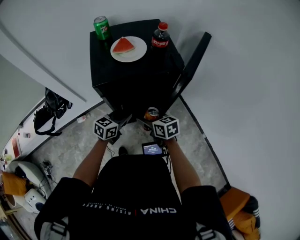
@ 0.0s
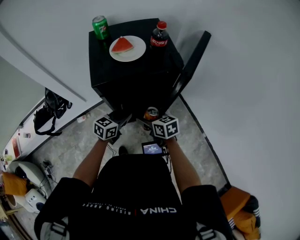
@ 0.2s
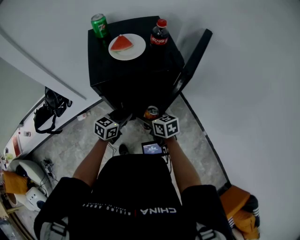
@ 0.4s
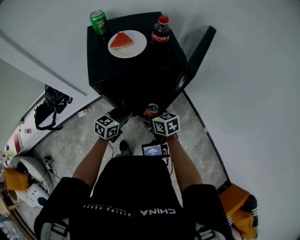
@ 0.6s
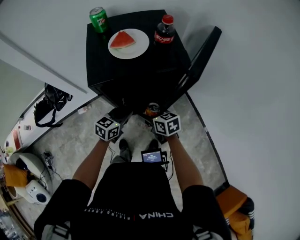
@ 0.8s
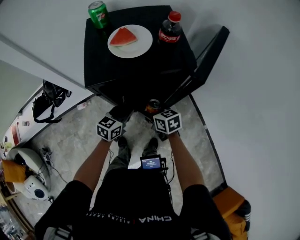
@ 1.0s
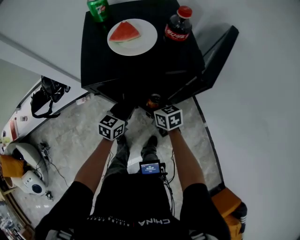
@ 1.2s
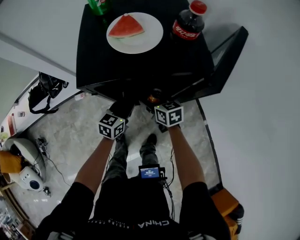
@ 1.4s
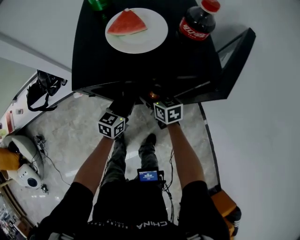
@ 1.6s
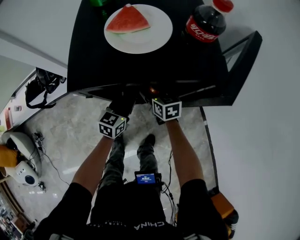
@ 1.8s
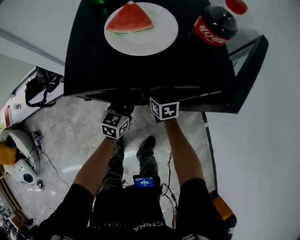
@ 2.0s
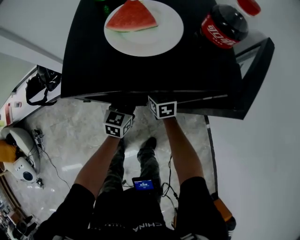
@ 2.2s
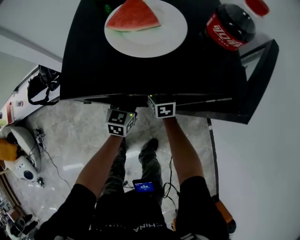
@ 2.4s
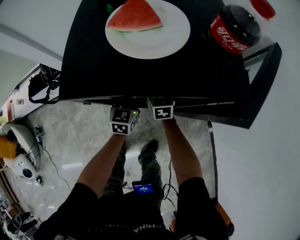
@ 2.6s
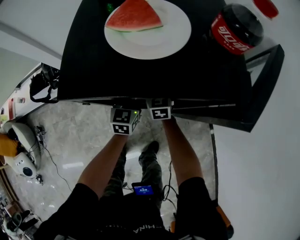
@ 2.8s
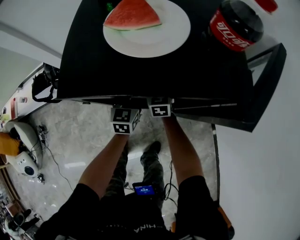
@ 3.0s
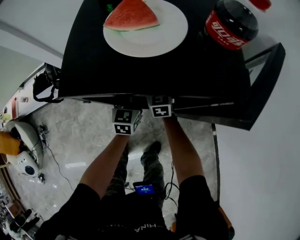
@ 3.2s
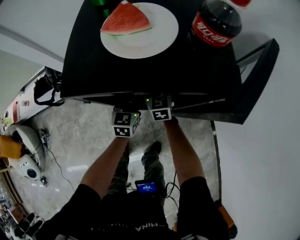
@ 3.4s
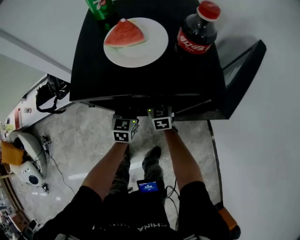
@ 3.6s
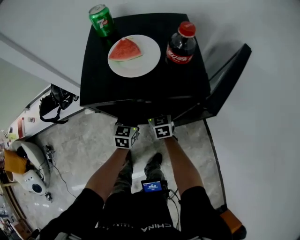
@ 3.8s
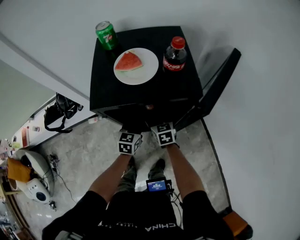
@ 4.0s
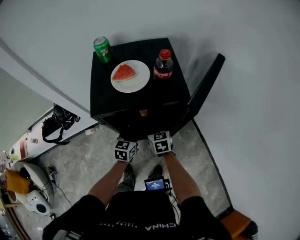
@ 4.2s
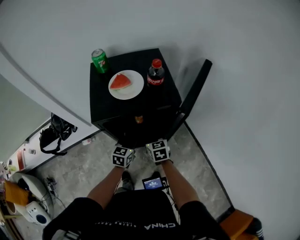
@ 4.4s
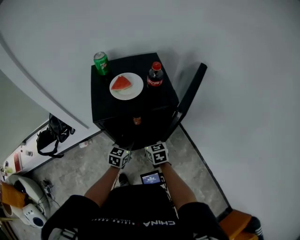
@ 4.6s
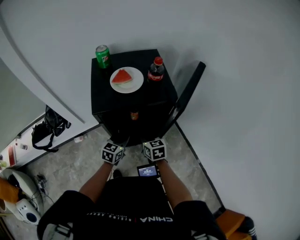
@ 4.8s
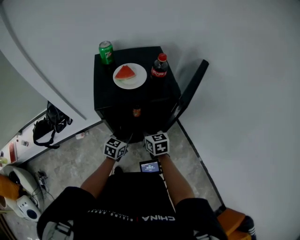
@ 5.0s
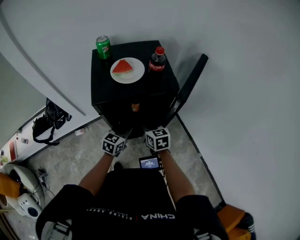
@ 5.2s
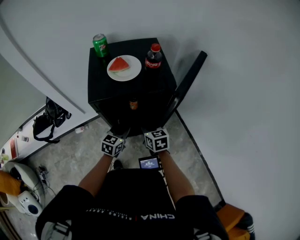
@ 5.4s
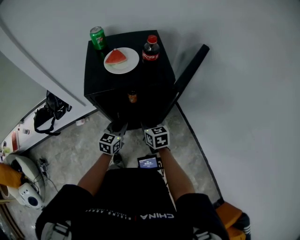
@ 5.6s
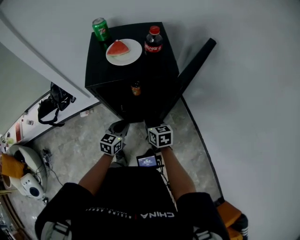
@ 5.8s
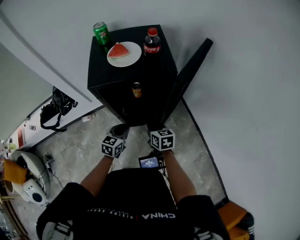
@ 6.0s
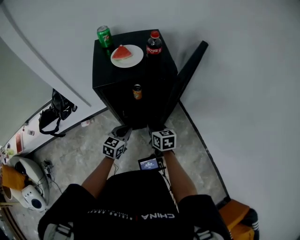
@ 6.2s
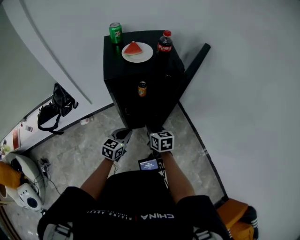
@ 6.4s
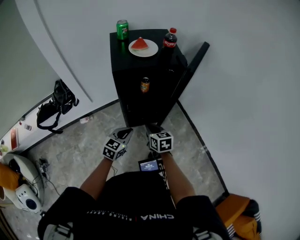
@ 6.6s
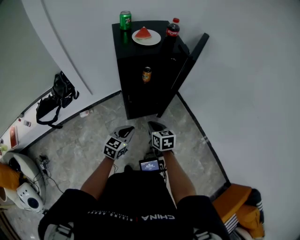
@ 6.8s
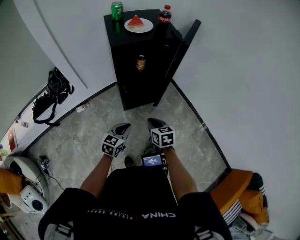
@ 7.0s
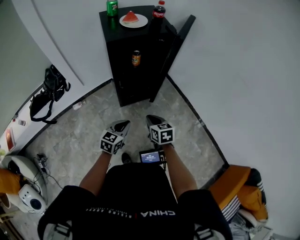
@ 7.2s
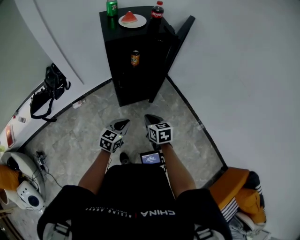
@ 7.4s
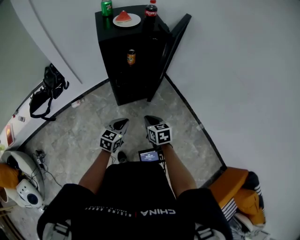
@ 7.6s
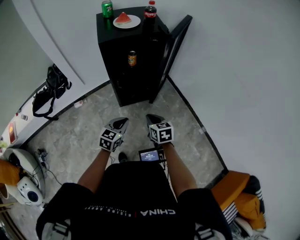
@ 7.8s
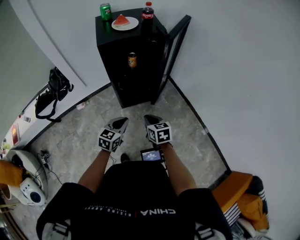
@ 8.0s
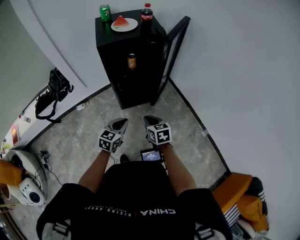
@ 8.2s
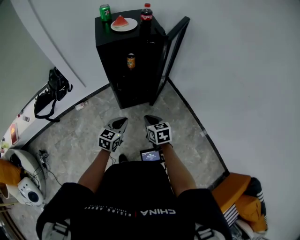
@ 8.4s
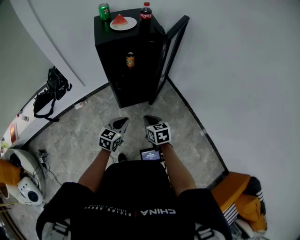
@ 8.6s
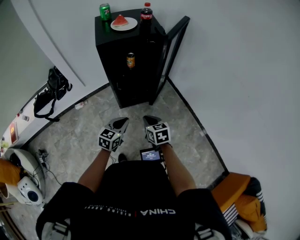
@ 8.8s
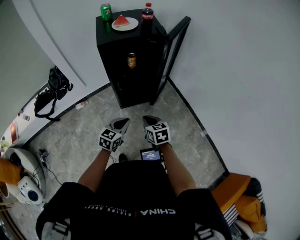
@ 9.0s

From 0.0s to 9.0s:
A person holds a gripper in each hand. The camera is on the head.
From 0.0s to 1.6s: The right gripper goes roughly 15 cm forward and downward, while the left gripper goes roughly 10 cm downward and forward.
From 1.6s to 3.0s: The two grippers go about 10 cm forward. The right gripper rotates roughly 30 degrees, while the left gripper swivels some 30 degrees.
From 3.0s to 4.4s: Both grippers move backward and upward, approximately 20 cm. The right gripper closes; the left gripper turns by roughly 20 degrees.
From 4.4s to 6.0s: The two grippers go roughly 10 cm backward.
From 6.0s to 7.6s: Both grippers travel together backward, roughly 25 cm.
From 7.6s to 9.0s: The grippers move only a little.

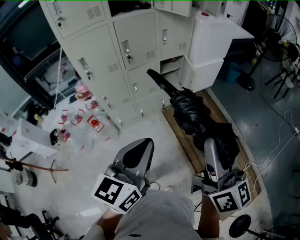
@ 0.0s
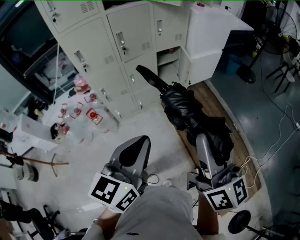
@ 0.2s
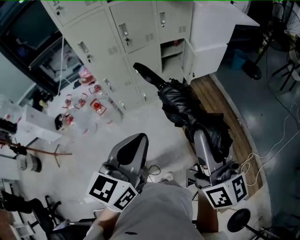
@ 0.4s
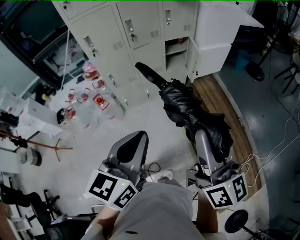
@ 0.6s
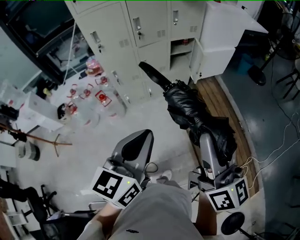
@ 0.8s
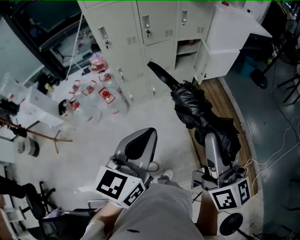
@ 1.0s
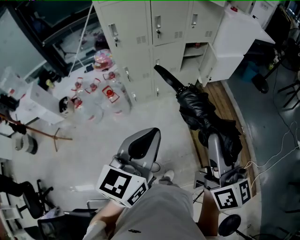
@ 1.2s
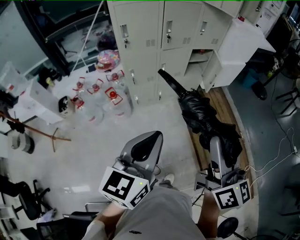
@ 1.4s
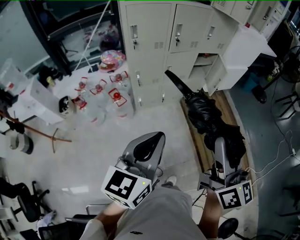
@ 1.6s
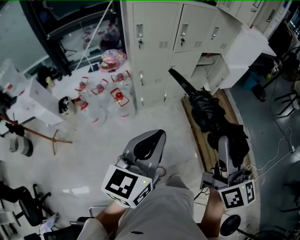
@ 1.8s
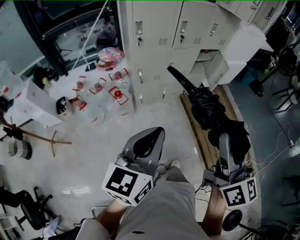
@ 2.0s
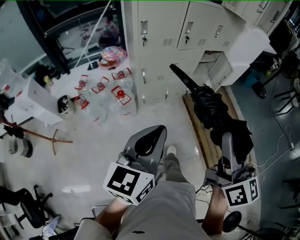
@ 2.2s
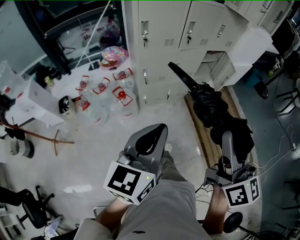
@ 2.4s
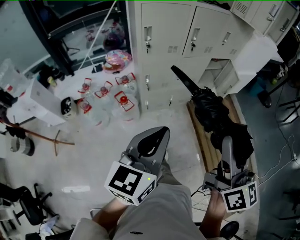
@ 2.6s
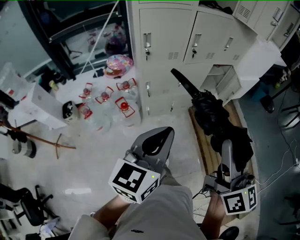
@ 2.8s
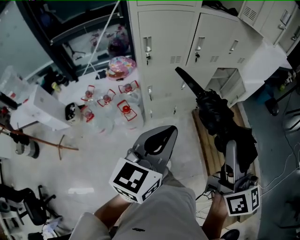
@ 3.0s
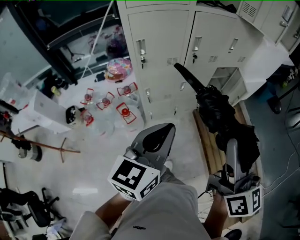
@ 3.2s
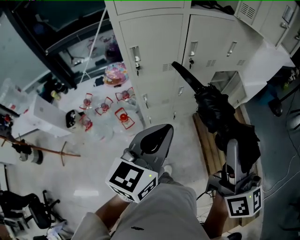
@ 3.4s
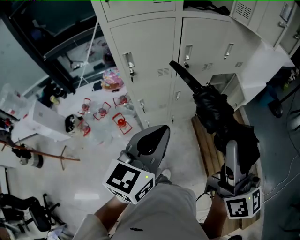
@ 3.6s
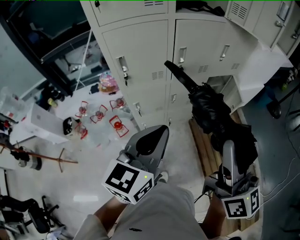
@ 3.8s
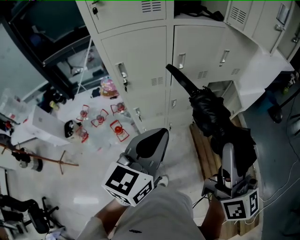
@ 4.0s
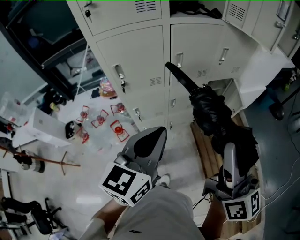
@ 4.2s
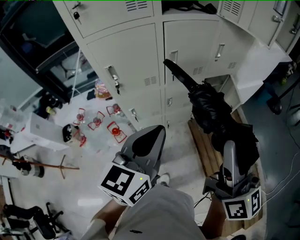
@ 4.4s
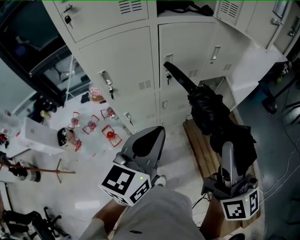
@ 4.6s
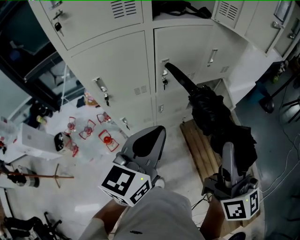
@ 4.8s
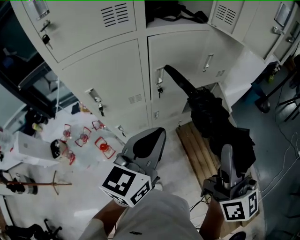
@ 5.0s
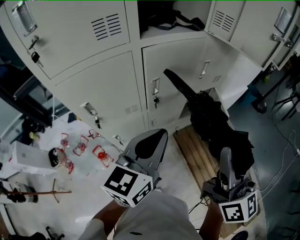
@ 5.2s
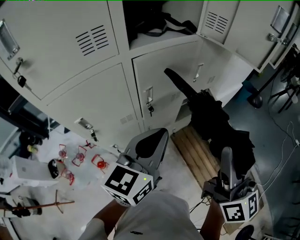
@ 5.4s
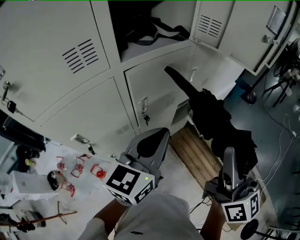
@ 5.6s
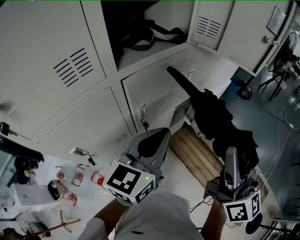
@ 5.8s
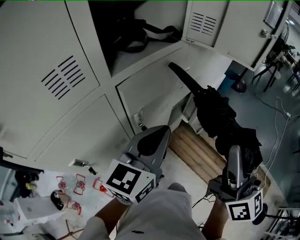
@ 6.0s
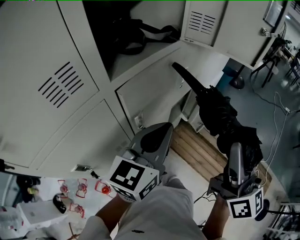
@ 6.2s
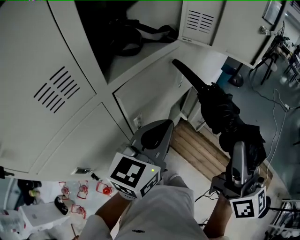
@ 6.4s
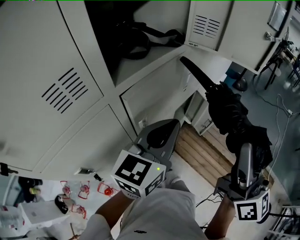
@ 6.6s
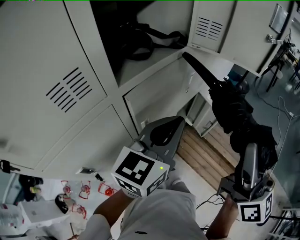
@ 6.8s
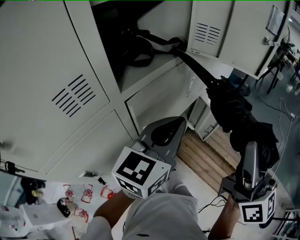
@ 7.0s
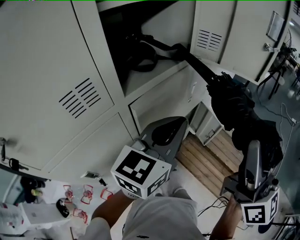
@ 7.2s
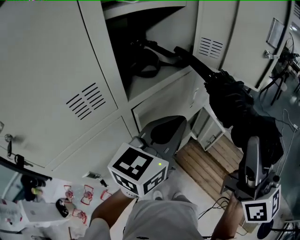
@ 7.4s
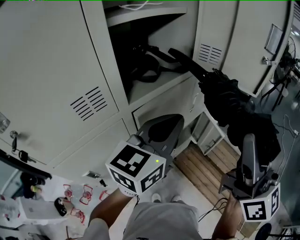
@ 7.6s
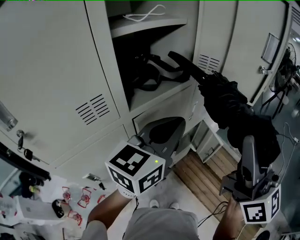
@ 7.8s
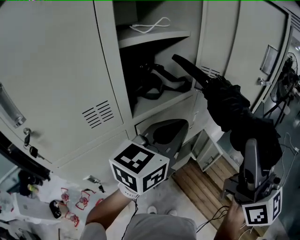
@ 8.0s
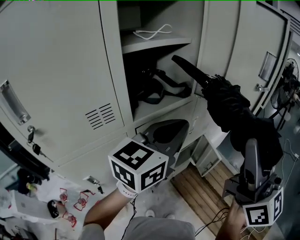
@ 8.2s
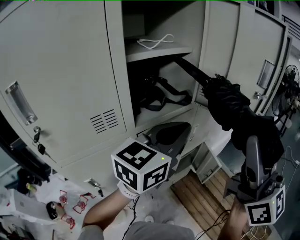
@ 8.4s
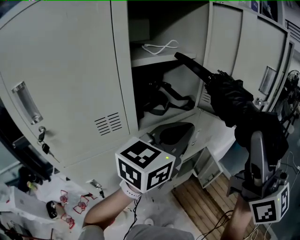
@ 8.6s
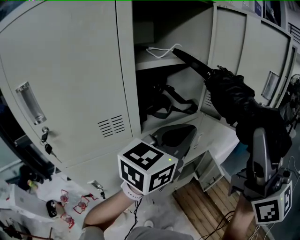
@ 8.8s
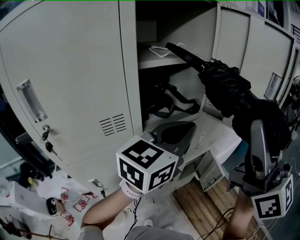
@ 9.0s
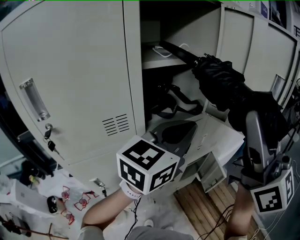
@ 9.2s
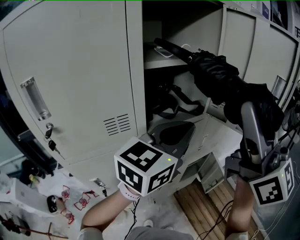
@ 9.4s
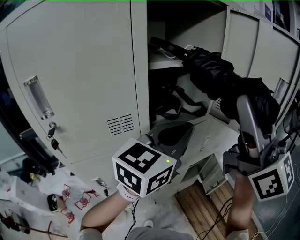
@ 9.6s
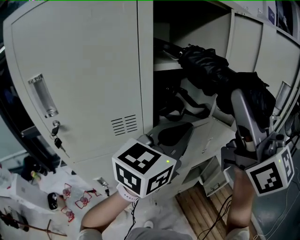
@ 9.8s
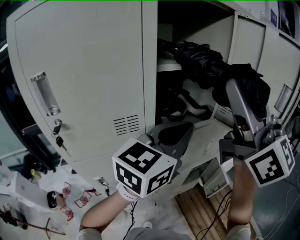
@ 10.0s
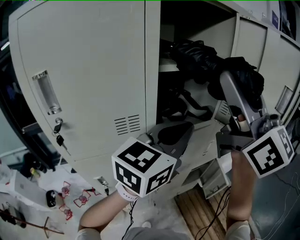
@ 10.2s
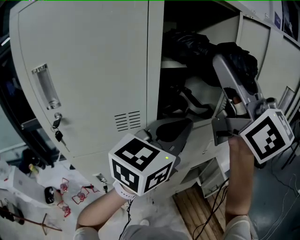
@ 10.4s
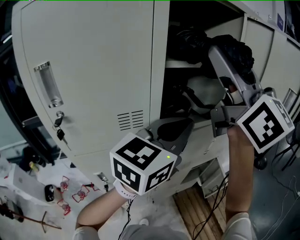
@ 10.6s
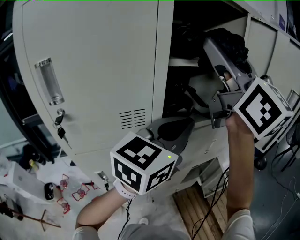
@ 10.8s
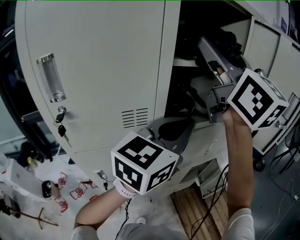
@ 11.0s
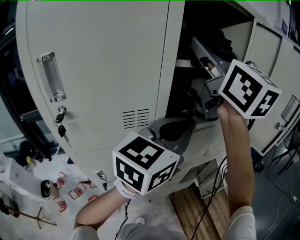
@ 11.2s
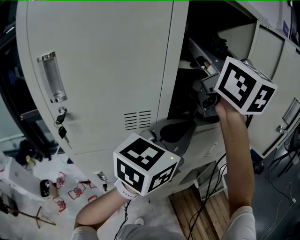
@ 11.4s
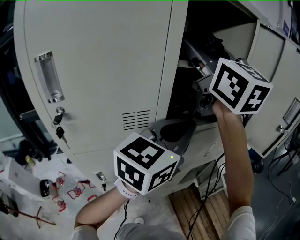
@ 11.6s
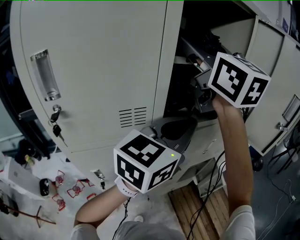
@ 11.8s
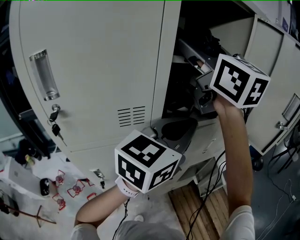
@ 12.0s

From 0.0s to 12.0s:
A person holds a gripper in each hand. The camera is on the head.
From 0.0s to 1.6s: Both grippers move to the left and backward, approximately 20 cm.
From 1.6s to 3.0s: The left gripper shifts approximately 20 cm forward; the right gripper moves forward and to the left, roughly 15 cm.
From 3.0s to 4.4s: The left gripper goes some 15 cm forward, while the right gripper goes approximately 15 cm forward and to the right.
From 4.4s to 6.0s: The right gripper ends up roughly 15 cm from where it was, and changes its angle by about 30 degrees, while the left gripper shifts by roughly 25 cm, and swivels some 30 degrees.
From 6.0s to 7.6s: The right gripper shifts roughly 10 cm upward. Meanwhile the left gripper heads upward and forward, covering roughly 10 cm.
From 7.6s to 9.0s: Both grippers travel together upward, some 10 cm.
From 9.0s to 10.4s: The right gripper goes about 15 cm to the left, forward and upward; the left gripper heads to the left, covering some 5 cm.
From 10.4s to 12.0s: The right gripper goes approximately 15 cm forward and to the left.

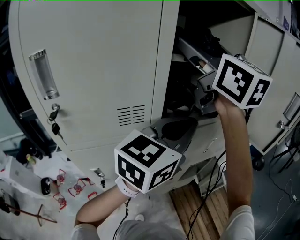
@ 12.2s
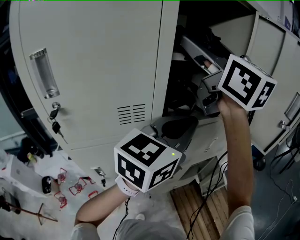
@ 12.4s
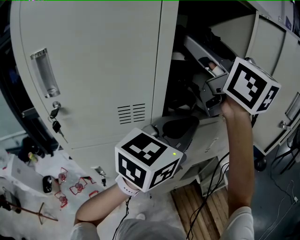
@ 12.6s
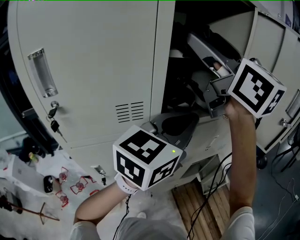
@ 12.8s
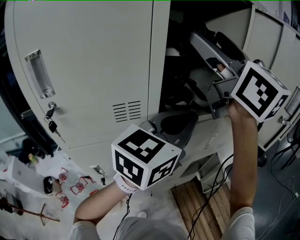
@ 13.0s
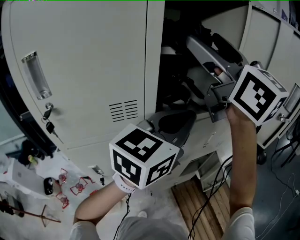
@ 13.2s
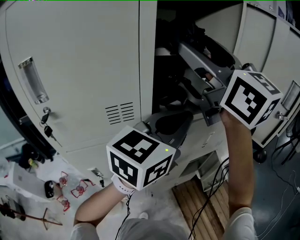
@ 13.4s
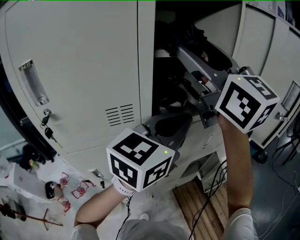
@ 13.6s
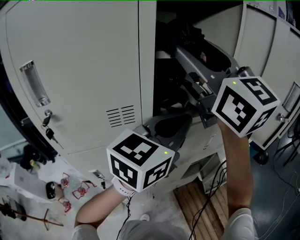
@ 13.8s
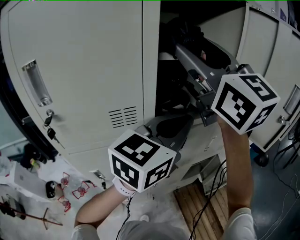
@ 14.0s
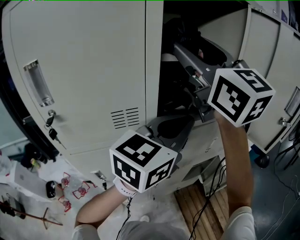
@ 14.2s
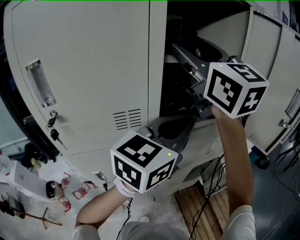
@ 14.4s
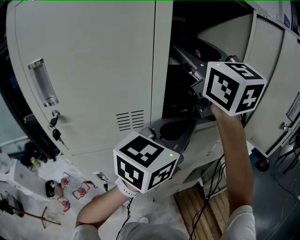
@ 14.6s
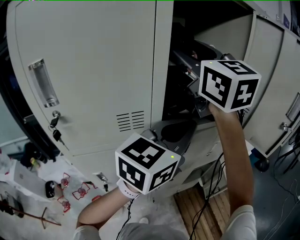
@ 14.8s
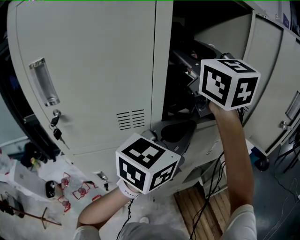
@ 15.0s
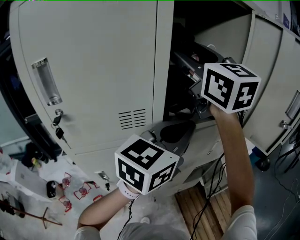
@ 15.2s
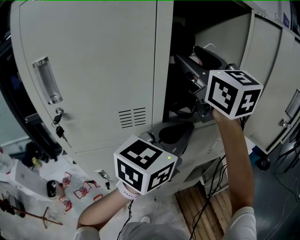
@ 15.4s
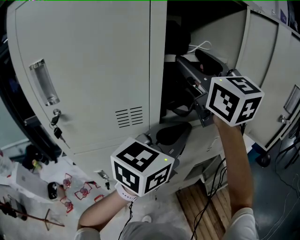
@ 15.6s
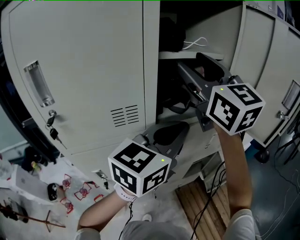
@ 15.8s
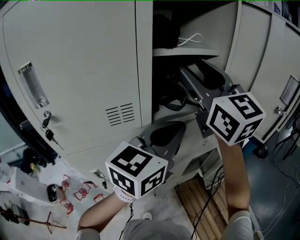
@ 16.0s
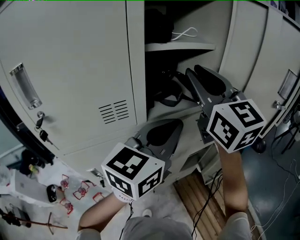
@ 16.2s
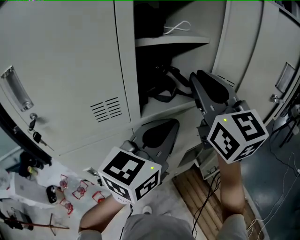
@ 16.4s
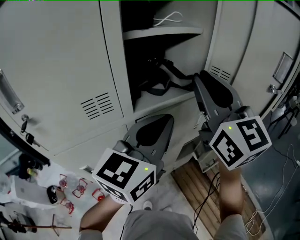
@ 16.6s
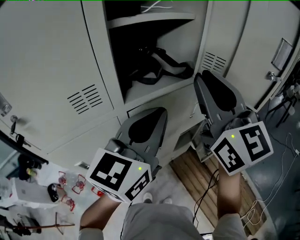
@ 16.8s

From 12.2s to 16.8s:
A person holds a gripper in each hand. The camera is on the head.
From 12.2s to 13.8s: The right gripper ends up approximately 5 cm from where it was.
From 13.8s to 15.2s: The right gripper heads forward, covering approximately 5 cm.
From 15.2s to 16.8s: The right gripper shifts some 20 cm to the right, downward and backward, and closes.
